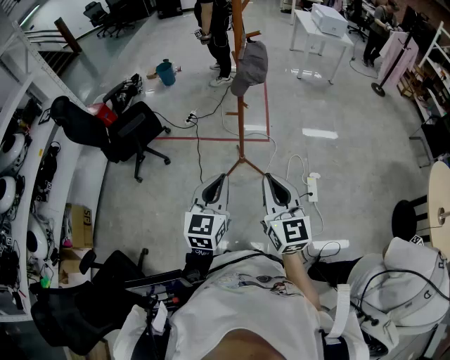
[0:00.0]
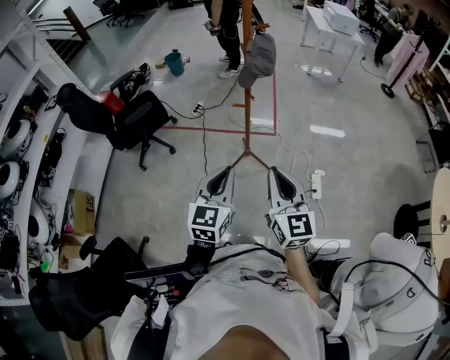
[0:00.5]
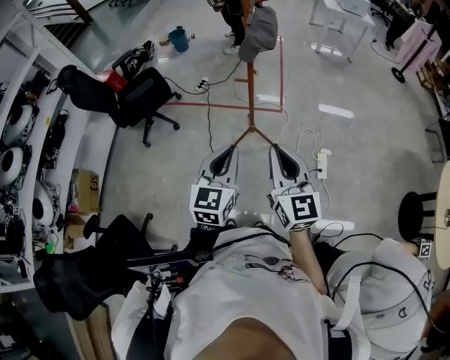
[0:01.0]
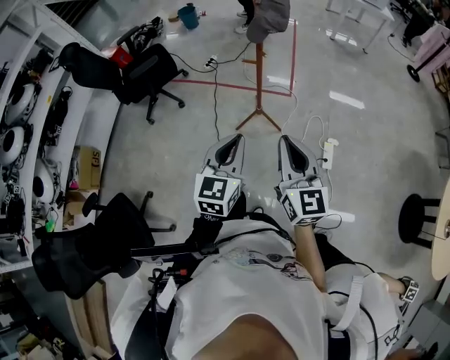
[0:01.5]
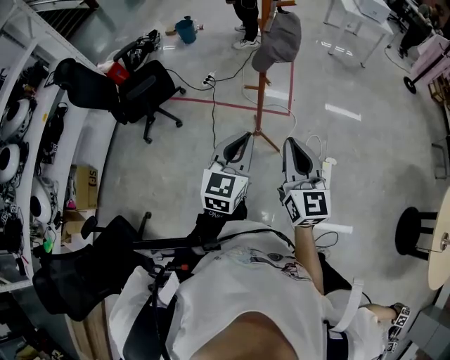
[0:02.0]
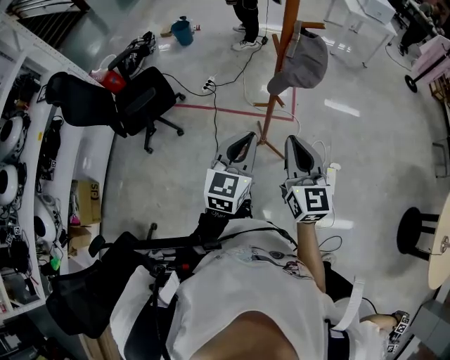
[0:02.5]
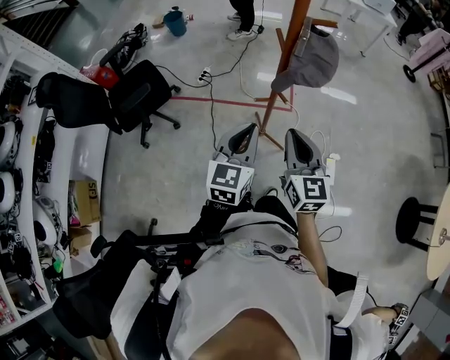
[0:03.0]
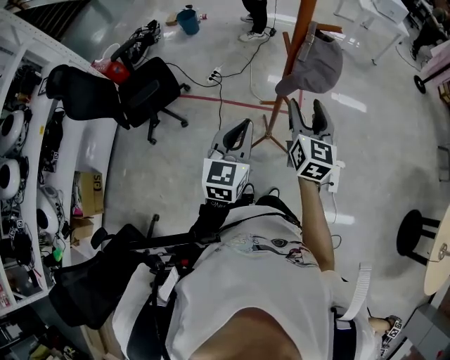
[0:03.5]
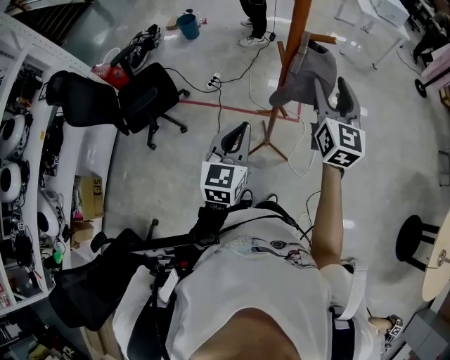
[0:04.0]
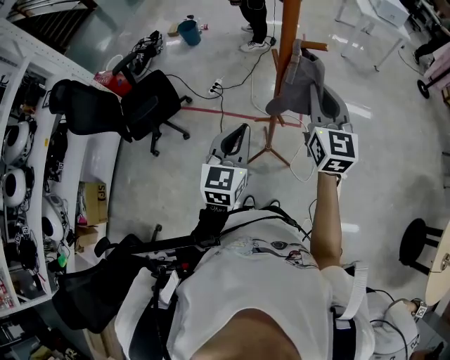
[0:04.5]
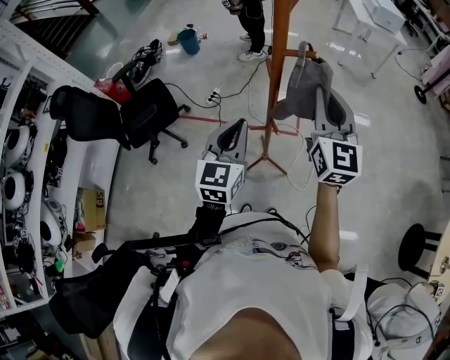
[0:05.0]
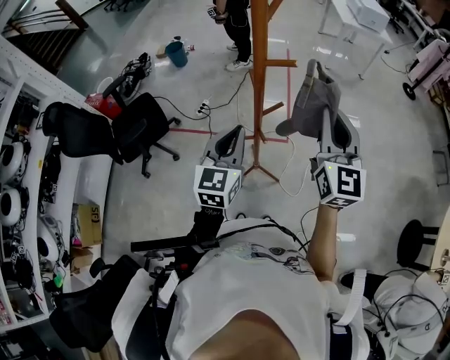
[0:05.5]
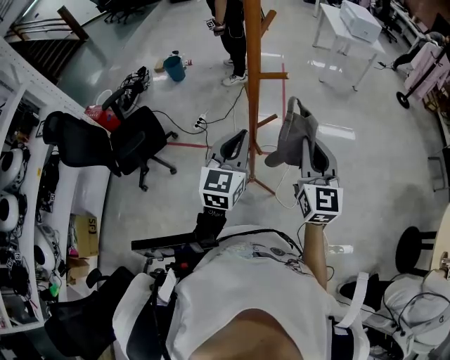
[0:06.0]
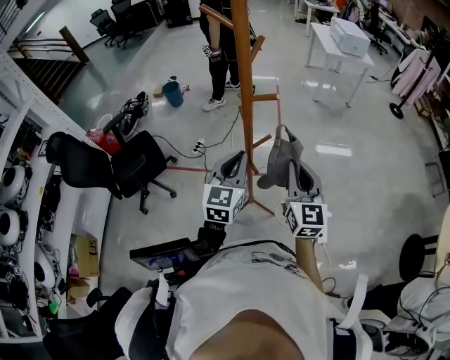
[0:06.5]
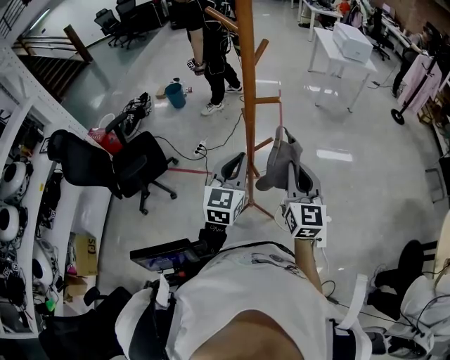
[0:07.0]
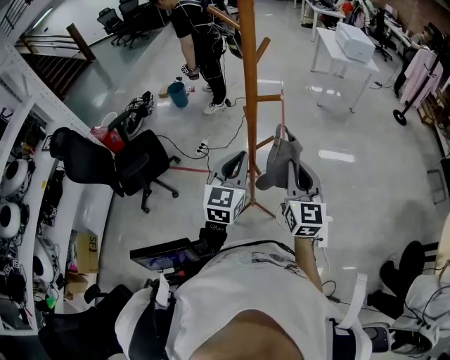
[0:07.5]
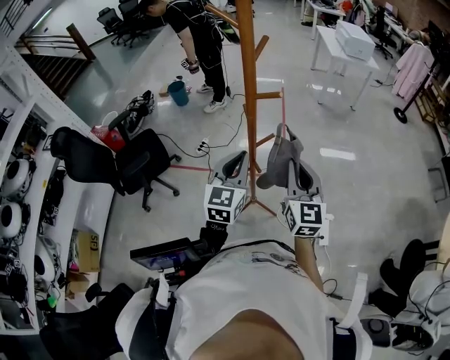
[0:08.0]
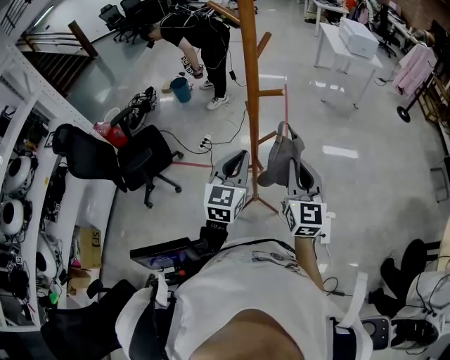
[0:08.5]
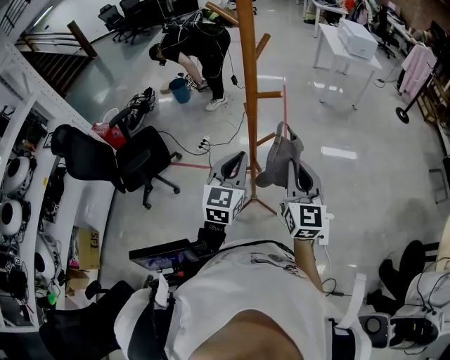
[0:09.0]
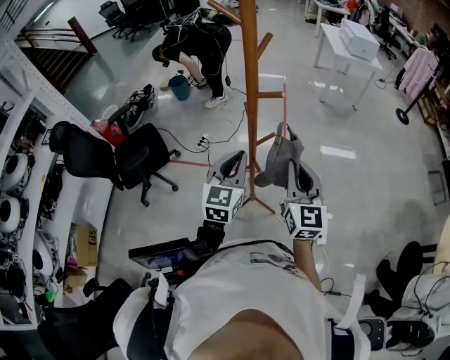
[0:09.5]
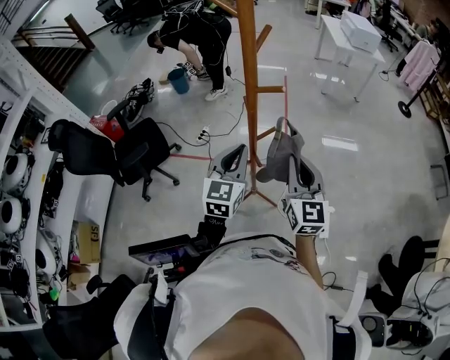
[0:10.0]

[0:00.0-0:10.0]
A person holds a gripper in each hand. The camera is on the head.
0.0 to 2.0 s: The grippers both shift forward by some 10 cm.
2.0 to 4.0 s: The right gripper heads forward, covering about 30 cm, and opens up. Meanwhile the left gripper goes about 20 cm forward and to the left.
4.0 to 6.0 s: The right gripper travels backward and to the right by some 10 cm, and closes. The left gripper heads to the right, forward and upward, covering roughly 10 cm.
6.0 to 10.0 s: The grippers make only small movements.

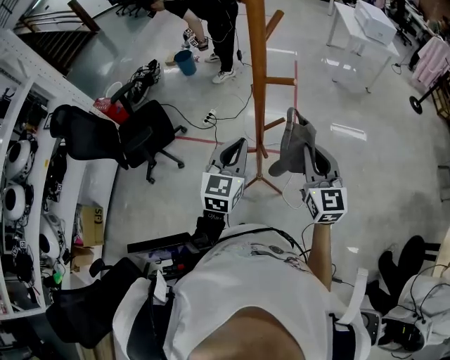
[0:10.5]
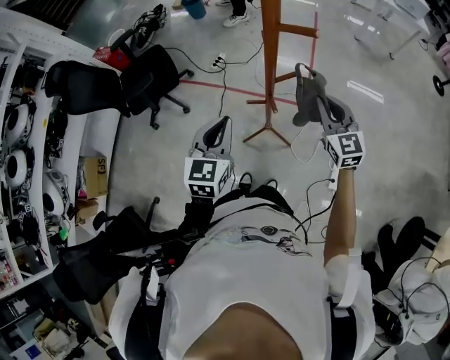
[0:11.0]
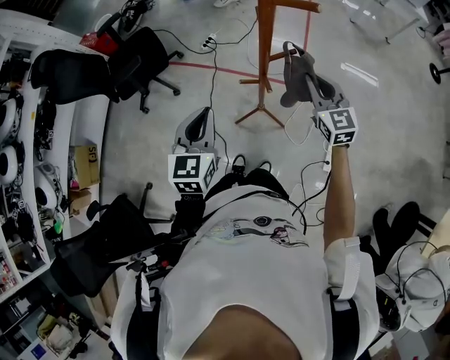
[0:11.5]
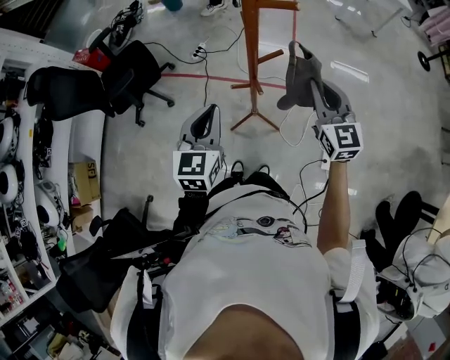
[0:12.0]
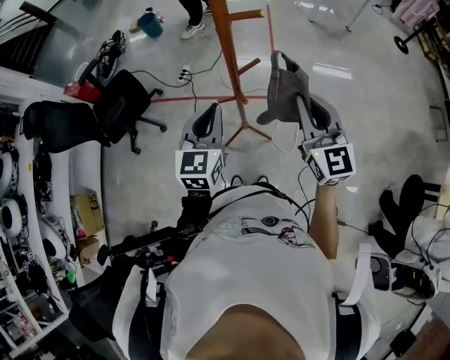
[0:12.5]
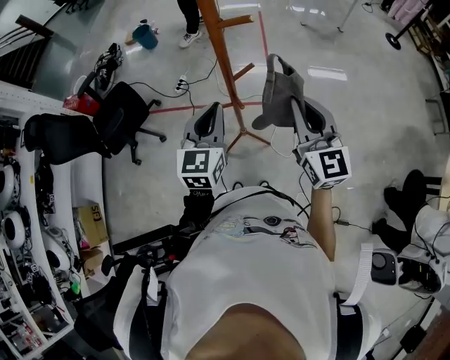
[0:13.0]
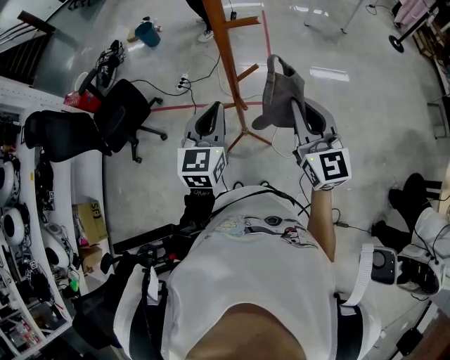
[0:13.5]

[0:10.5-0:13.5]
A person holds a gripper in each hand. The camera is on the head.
10.5 to 12.0 s: The left gripper travels to the left by some 5 cm; the right gripper is displaced downward by approximately 5 cm.
12.0 to 13.5 s: The left gripper is displaced to the right by roughly 5 cm. Meanwhile the right gripper is displaced upward and backward by approximately 10 cm.

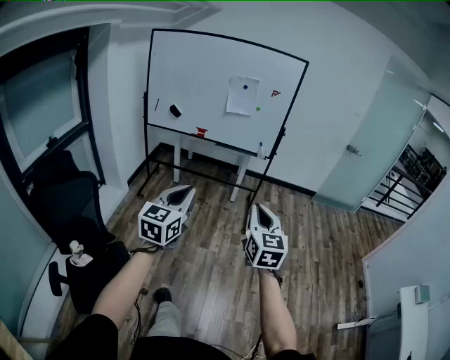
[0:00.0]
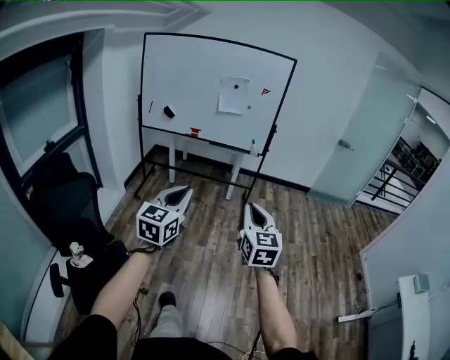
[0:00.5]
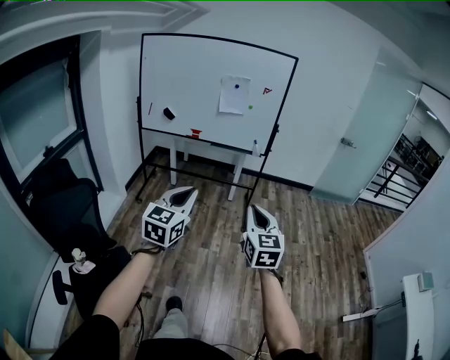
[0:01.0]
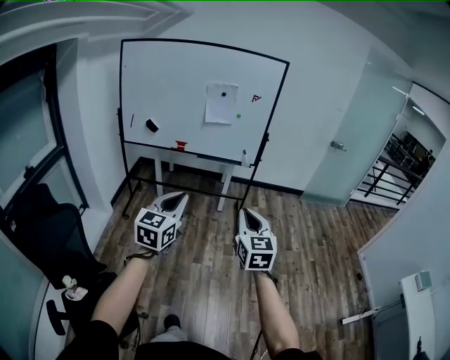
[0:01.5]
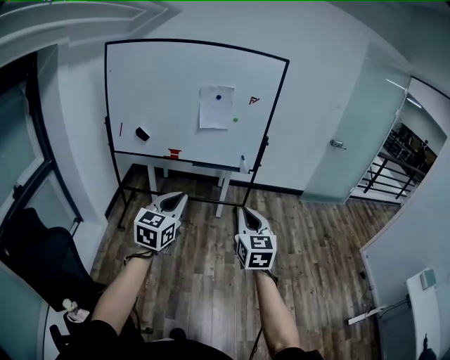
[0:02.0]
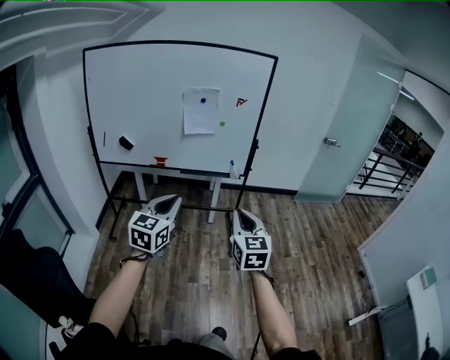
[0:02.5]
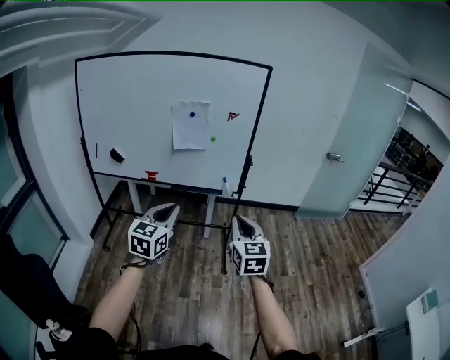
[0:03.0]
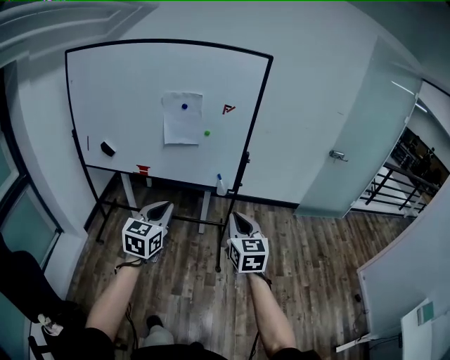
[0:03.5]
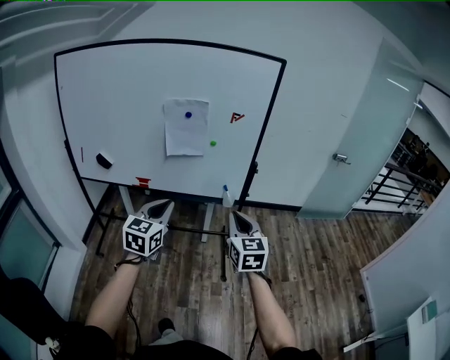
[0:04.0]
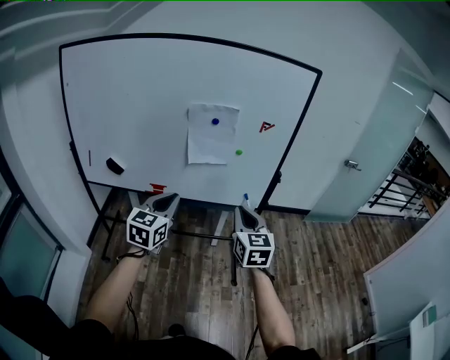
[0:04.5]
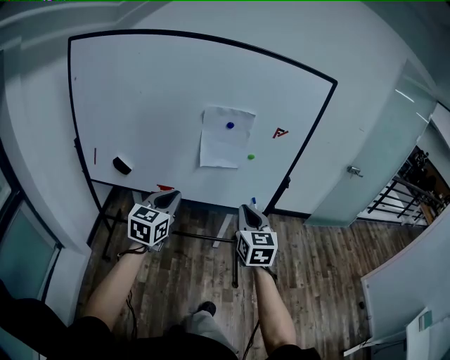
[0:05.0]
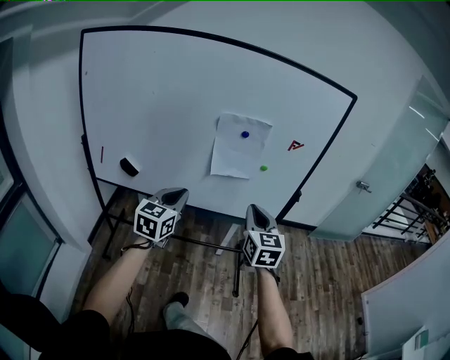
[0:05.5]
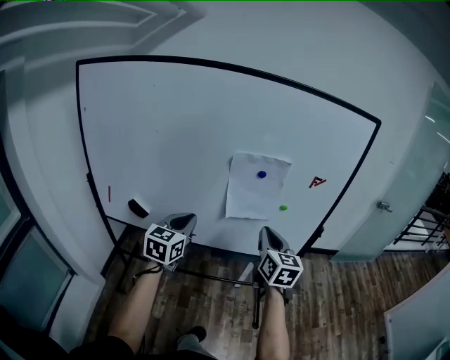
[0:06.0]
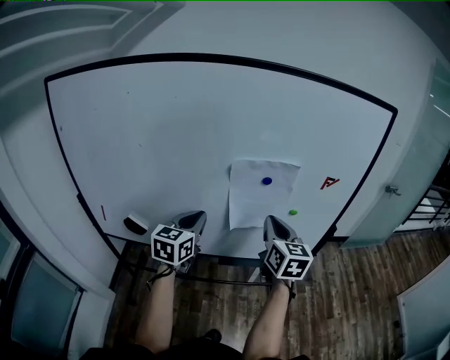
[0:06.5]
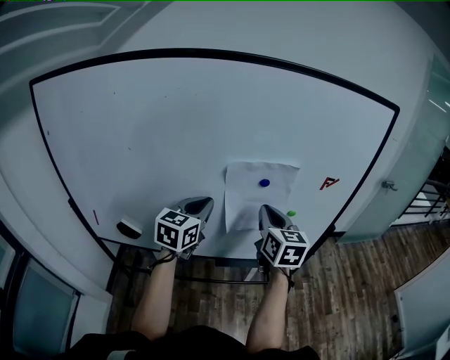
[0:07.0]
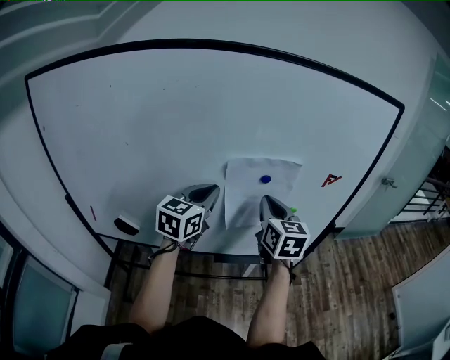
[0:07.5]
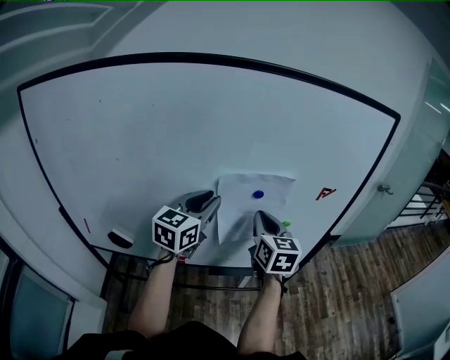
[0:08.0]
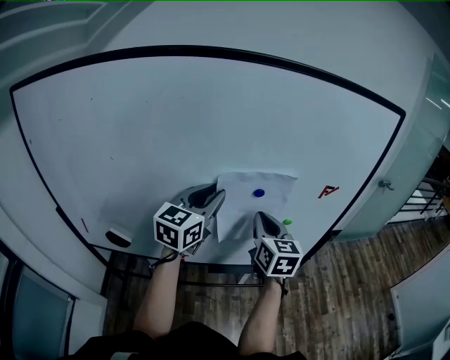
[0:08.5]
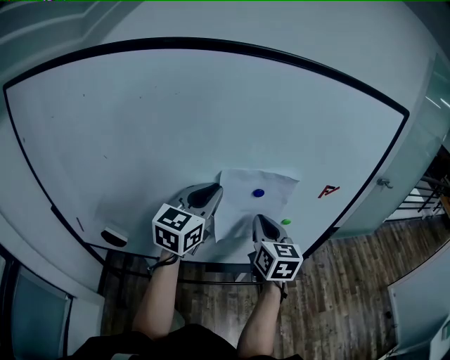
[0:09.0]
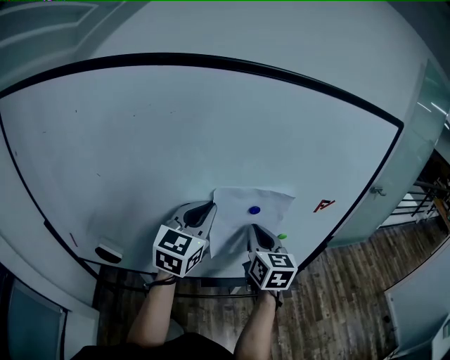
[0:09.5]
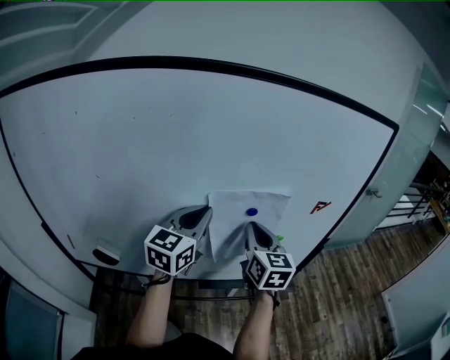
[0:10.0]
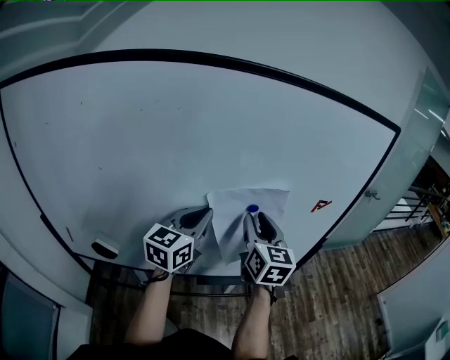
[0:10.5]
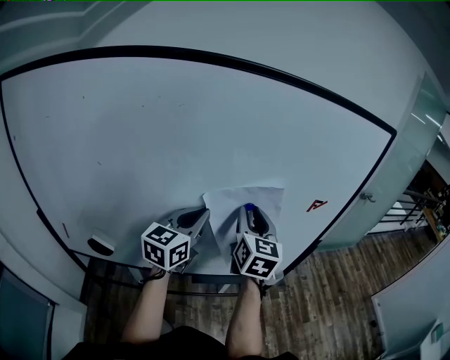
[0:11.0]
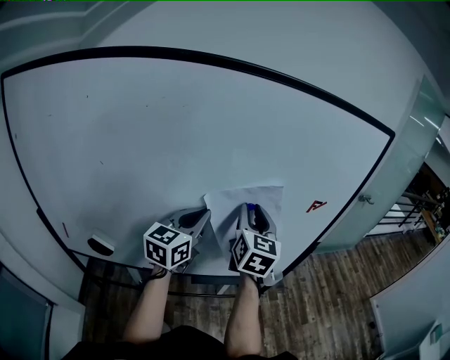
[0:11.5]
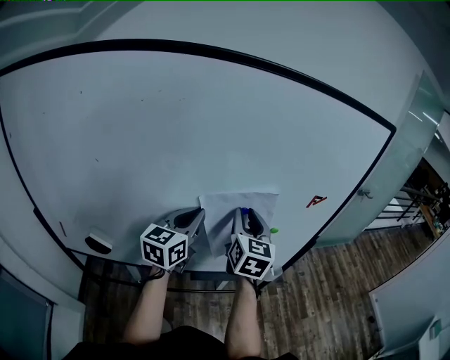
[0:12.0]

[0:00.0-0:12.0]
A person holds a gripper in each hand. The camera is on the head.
0.0 to 2.0 s: The two grippers go roughly 20 cm forward.
2.0 to 4.0 s: Both grippers travel together forward, roughly 35 cm.
4.0 to 6.0 s: Both grippers travel together forward and to the left, some 35 cm.
6.0 to 8.0 s: The left gripper heads forward and upward, covering about 20 cm. Meanwhile the right gripper goes about 15 cm forward.
8.0 to 10.0 s: The grippers make only small movements.
10.0 to 12.0 s: The right gripper opens. The left gripper travels downward by about 5 cm.

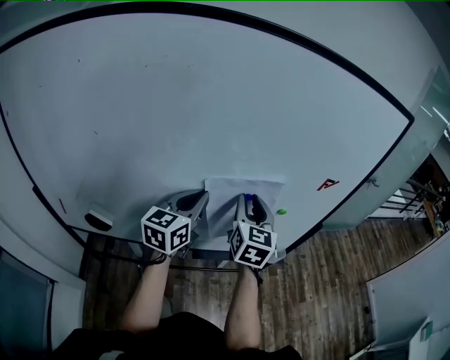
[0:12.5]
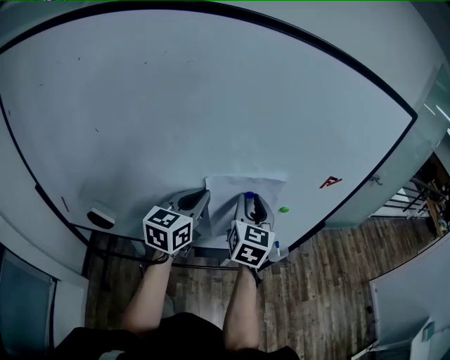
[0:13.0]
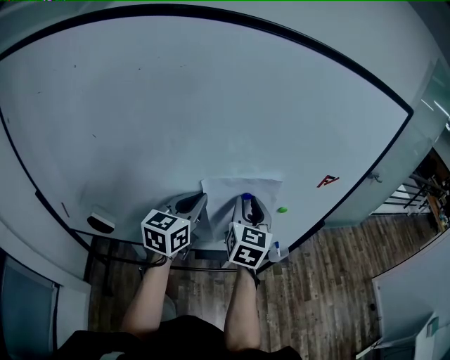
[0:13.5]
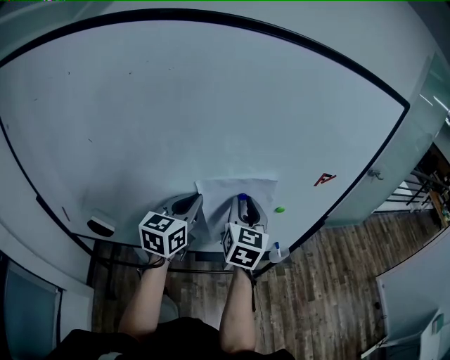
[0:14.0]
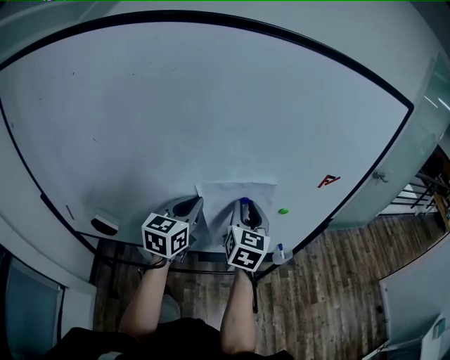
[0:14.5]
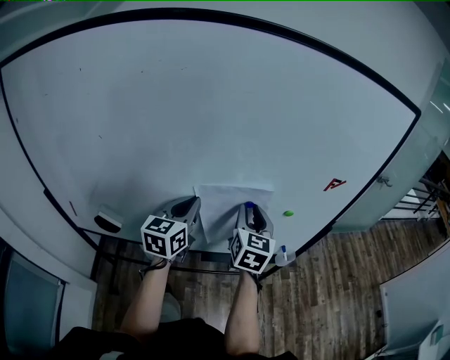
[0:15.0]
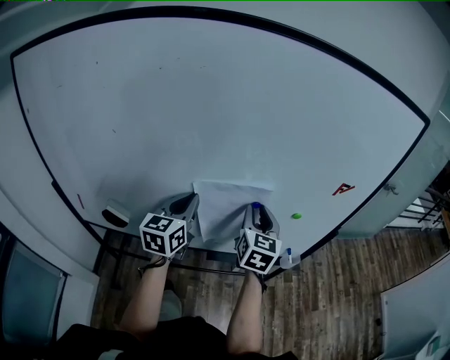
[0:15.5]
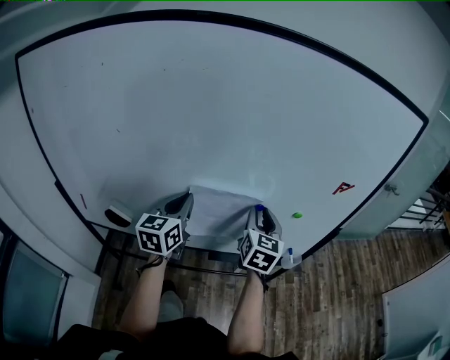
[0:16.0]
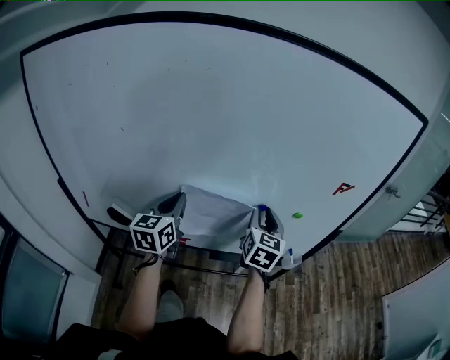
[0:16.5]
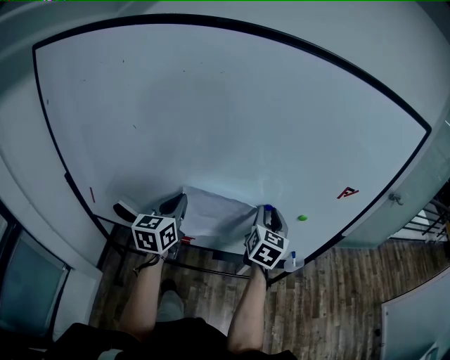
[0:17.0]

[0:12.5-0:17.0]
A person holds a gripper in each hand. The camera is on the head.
12.5 to 14.5 s: There are only small adjustments of the grippers.
14.5 to 17.0 s: The left gripper is displaced to the left and backward by some 15 cm.
